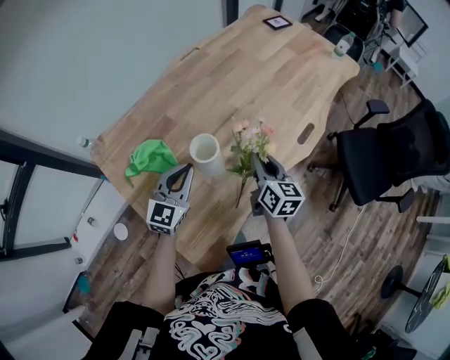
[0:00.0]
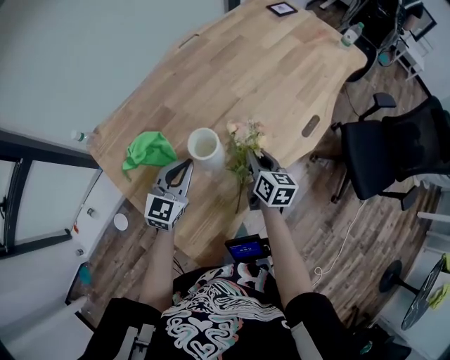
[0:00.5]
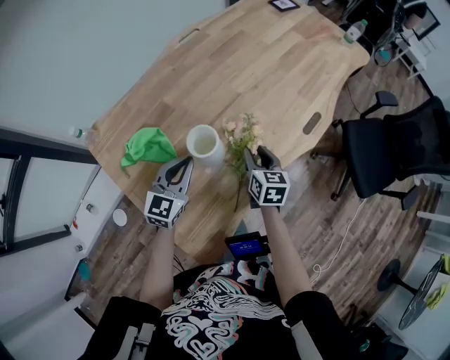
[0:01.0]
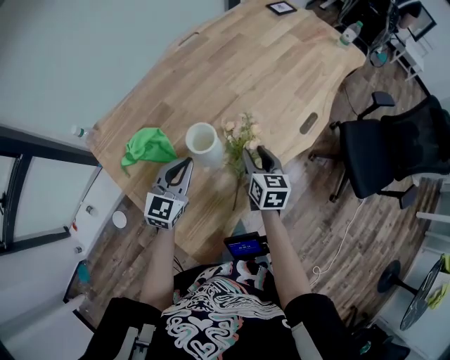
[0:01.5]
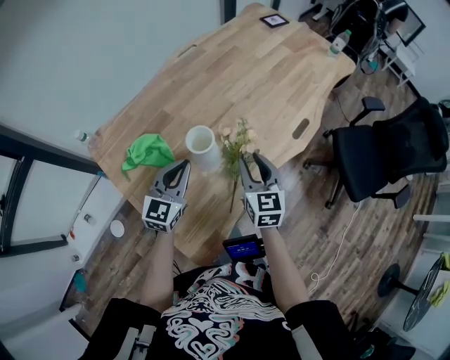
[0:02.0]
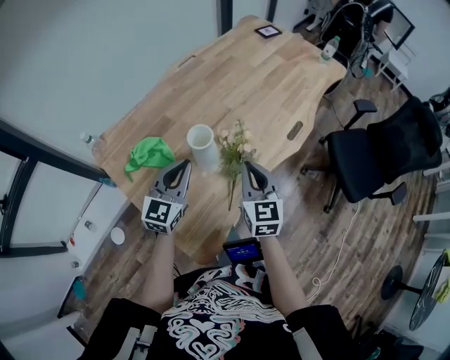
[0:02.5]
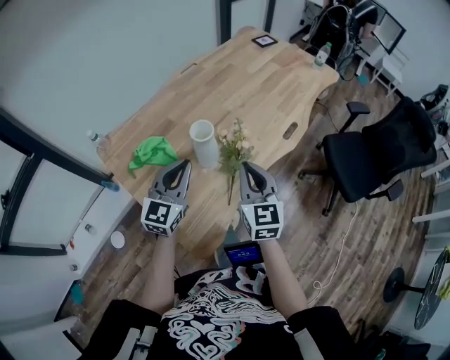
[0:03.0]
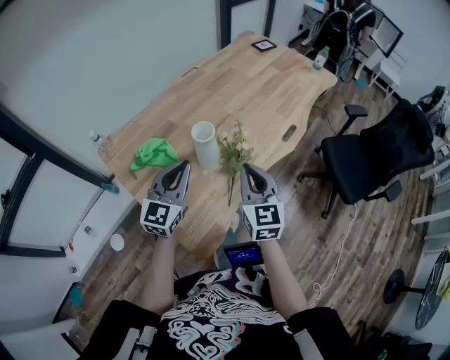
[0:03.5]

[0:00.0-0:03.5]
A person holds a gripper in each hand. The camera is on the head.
0:00.0 to 0:02.0: The right gripper travels downward and back again, about 10 cm each way, and rotates some 20 degrees.
0:02.0 to 0:03.5: The left gripper heads upward and backward, covering approximately 15 cm. The right gripper is displaced backward and upward by approximately 15 cm, and closes its fingers.

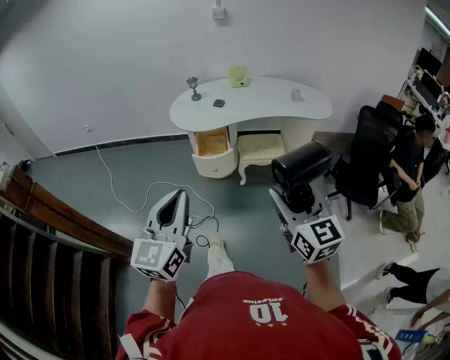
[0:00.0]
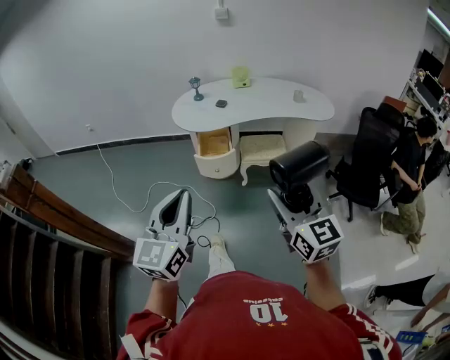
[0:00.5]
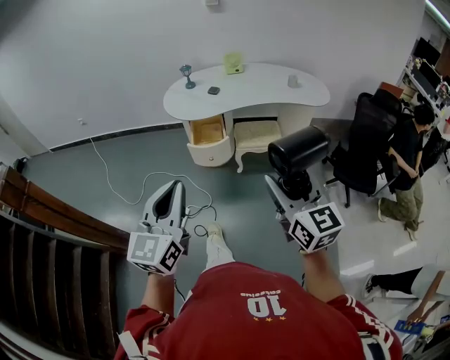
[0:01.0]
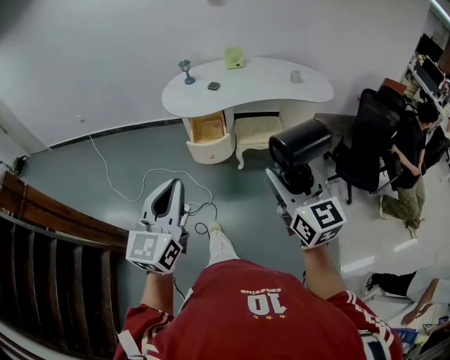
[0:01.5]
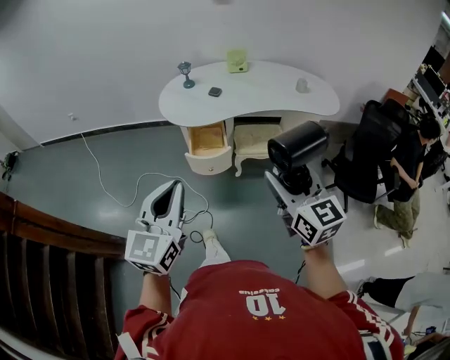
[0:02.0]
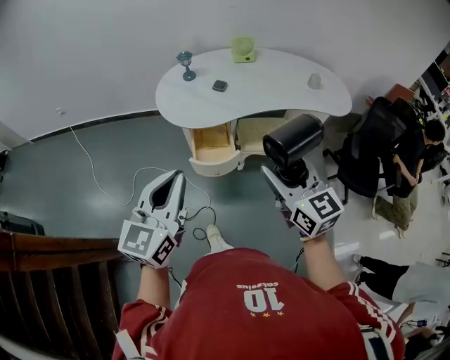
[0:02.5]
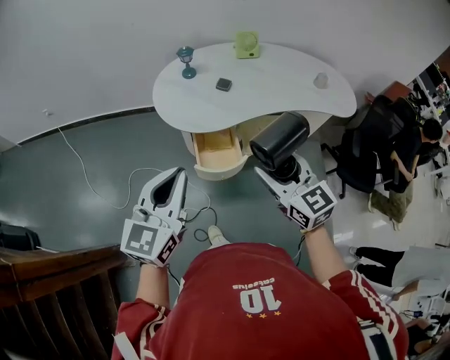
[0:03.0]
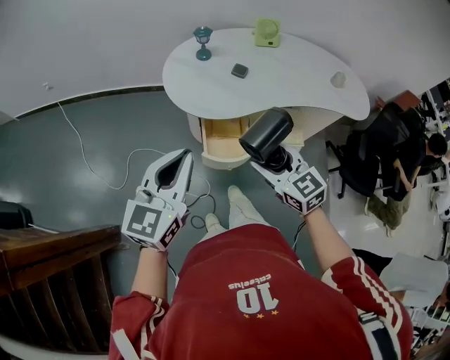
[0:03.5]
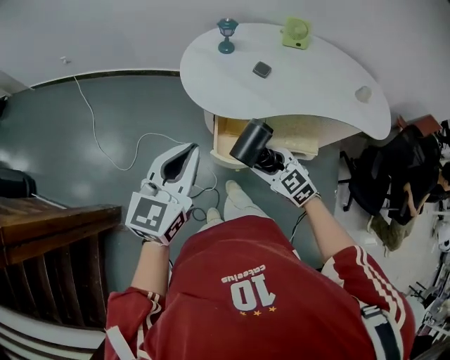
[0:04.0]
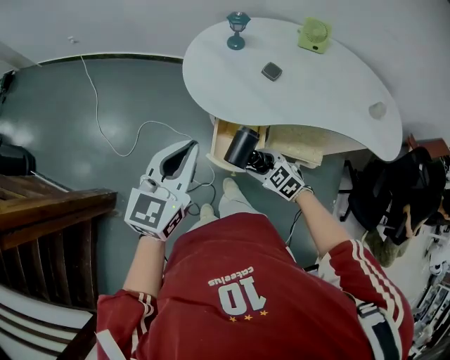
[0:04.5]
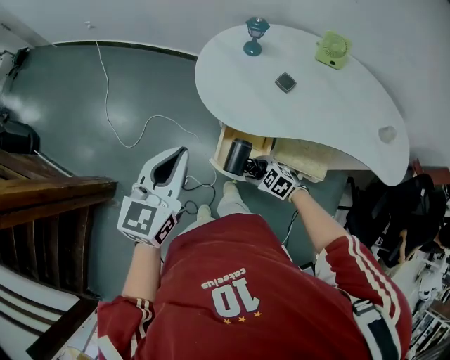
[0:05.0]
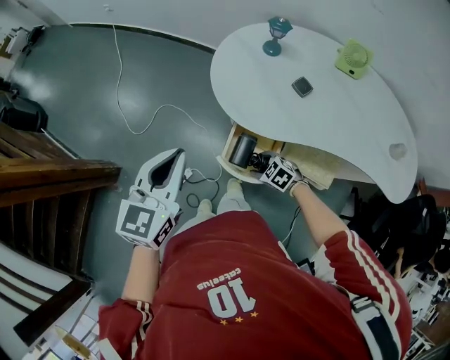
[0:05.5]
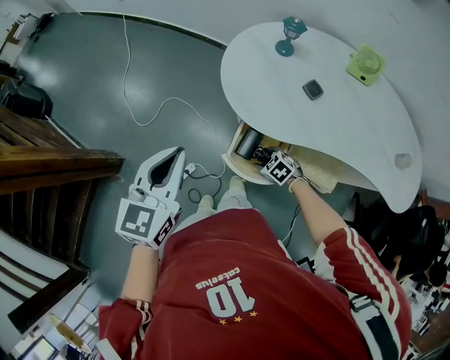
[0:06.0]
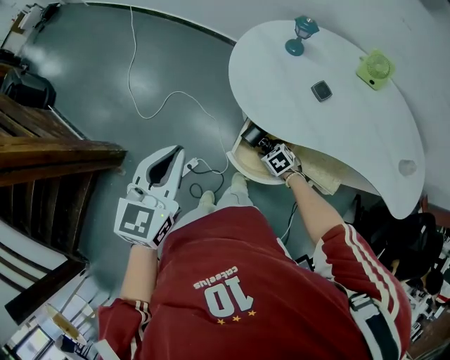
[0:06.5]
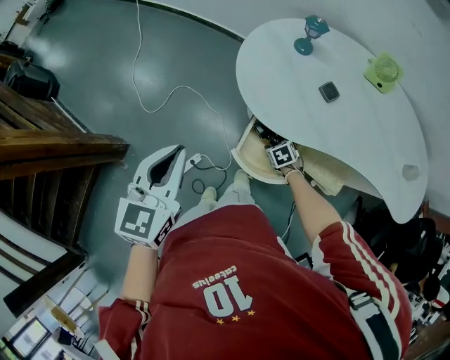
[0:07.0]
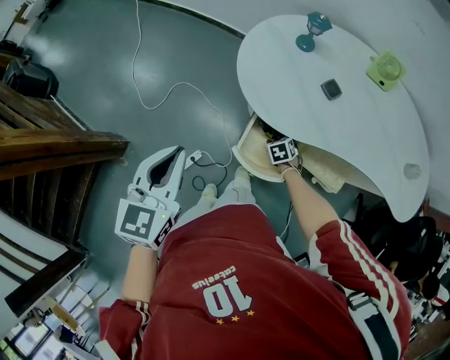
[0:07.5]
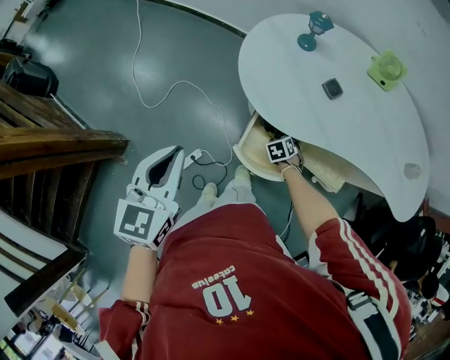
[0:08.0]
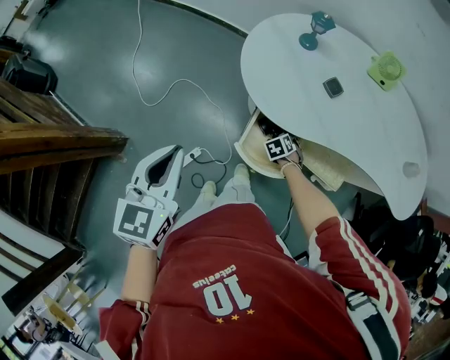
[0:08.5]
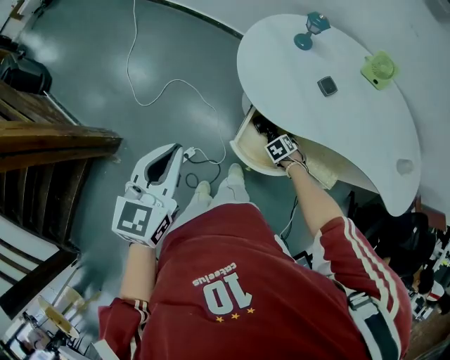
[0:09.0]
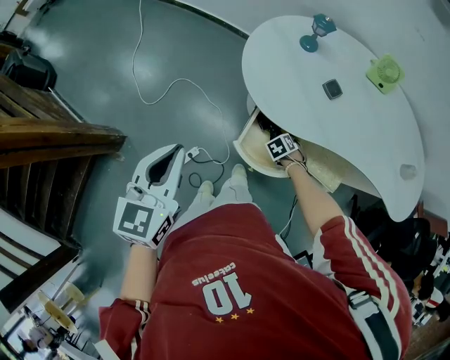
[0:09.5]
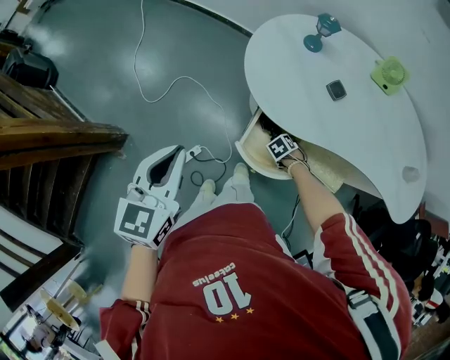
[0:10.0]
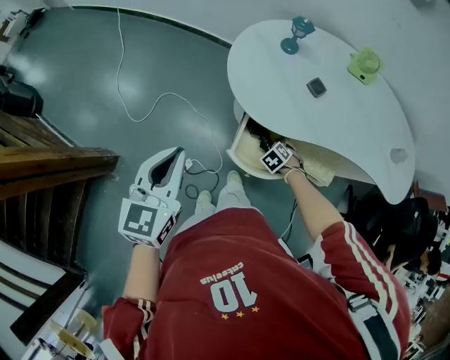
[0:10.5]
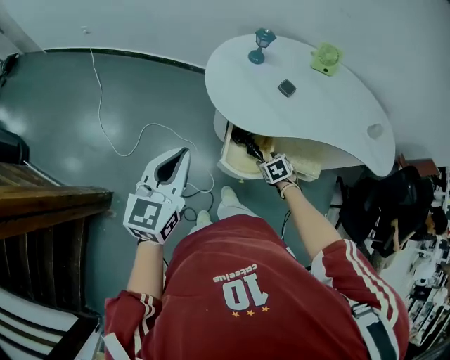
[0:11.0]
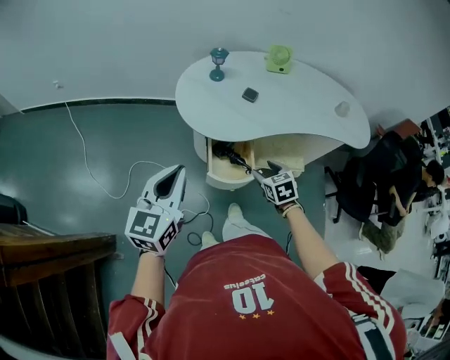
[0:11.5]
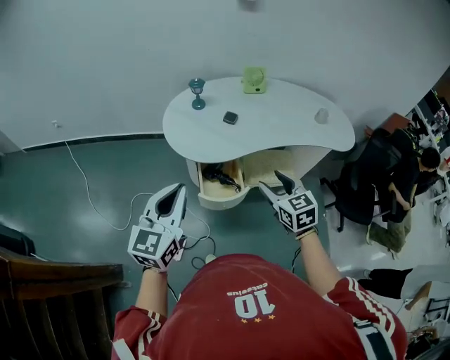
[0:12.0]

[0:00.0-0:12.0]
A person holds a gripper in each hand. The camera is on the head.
0:00.0 to 0:02.0: The grippers both shift forward by roughly 15 cm.
0:02.0 to 0:04.0: The left gripper is displaced forward by roughly 30 cm, while the right gripper is displaced forward, downward and to the left by about 40 cm, and points its fingers about 30 degrees further downward.
0:04.0 to 0:06.0: The right gripper goes about 25 cm downward, and changes its angle by some 40 degrees; the left gripper moves roughly 10 cm, and turns by roughly 30 degrees.
0:06.0 to 0:08.0: The right gripper moves some 10 cm, and rotates some 30 degrees.
0:08.0 to 0:10.0: The right gripper shifts by some 5 cm, and rotates roughly 20 degrees.
0:10.0 to 0:12.0: The right gripper moves upward, some 50 cm, and angles its fingers upward, by some 60 degrees. Meanwhile the left gripper heads upward, covering roughly 10 cm, and swivels about 40 degrees.

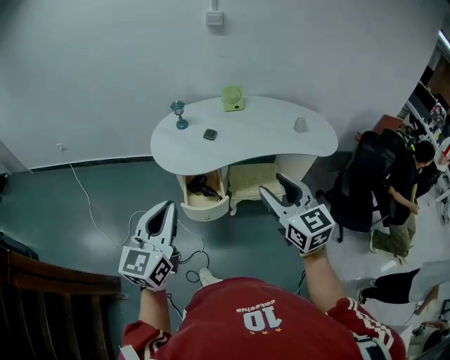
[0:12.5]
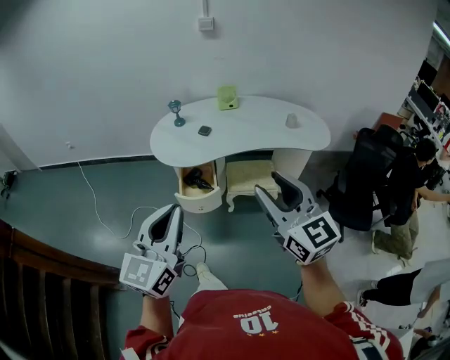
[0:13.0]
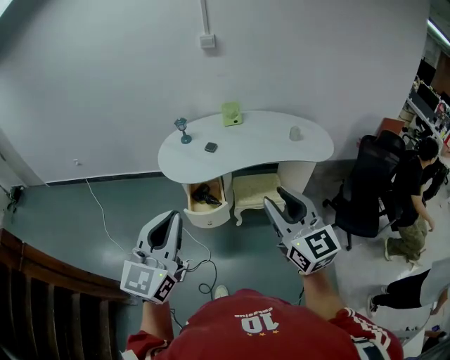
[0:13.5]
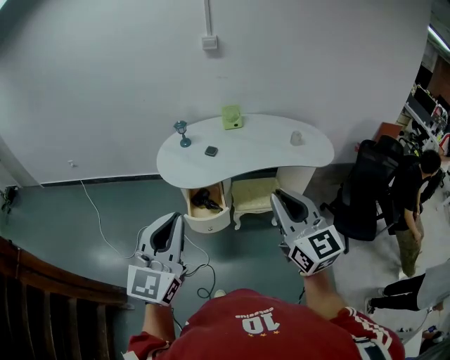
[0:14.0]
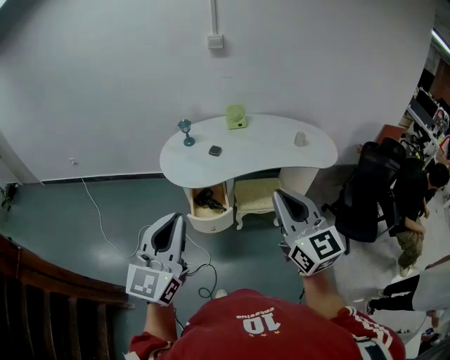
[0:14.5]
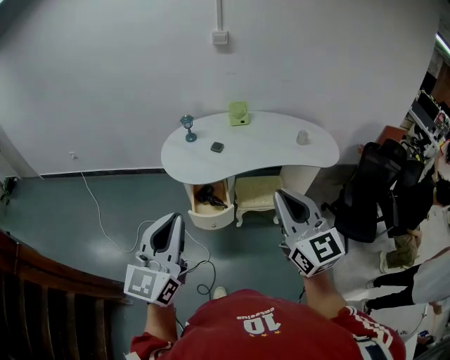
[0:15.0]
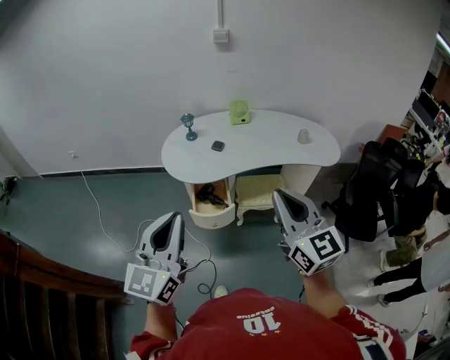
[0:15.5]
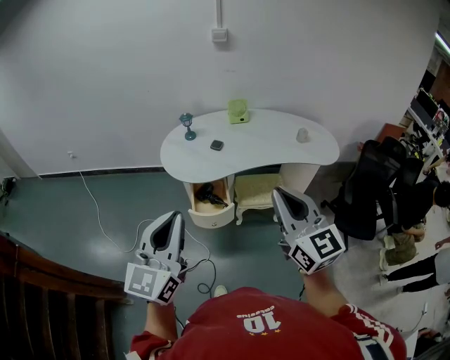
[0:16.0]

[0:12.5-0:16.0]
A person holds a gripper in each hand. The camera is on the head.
0:12.5 to 0:14.5: Both grippers move upward and backward, about 10 cm. The right gripper closes its fingers.
0:14.5 to 0:16.0: The grippers move only a little.

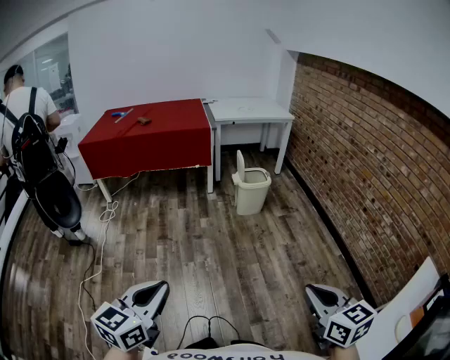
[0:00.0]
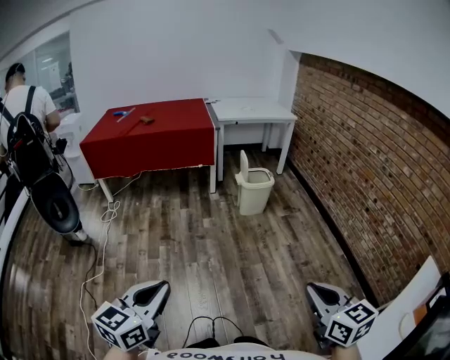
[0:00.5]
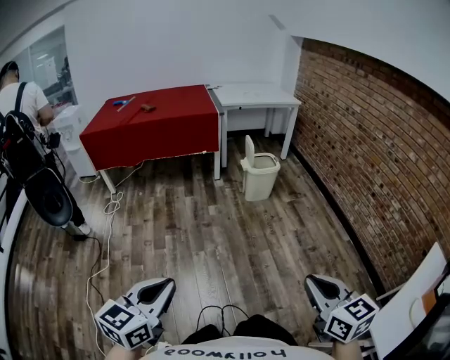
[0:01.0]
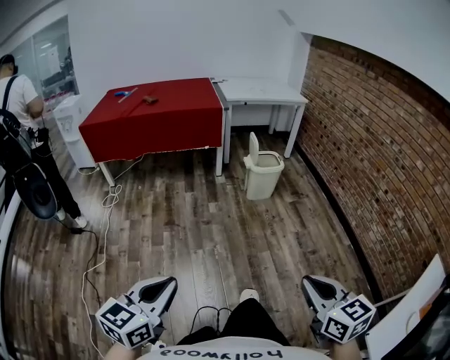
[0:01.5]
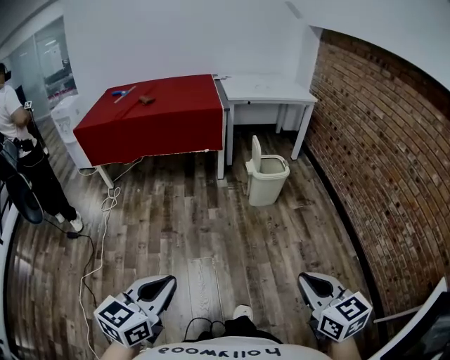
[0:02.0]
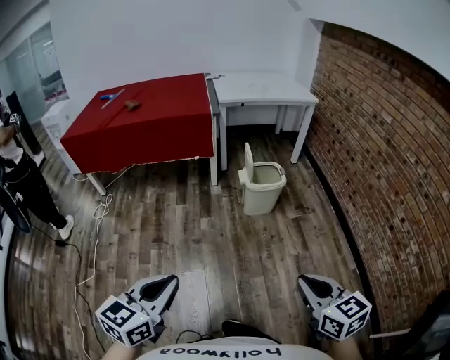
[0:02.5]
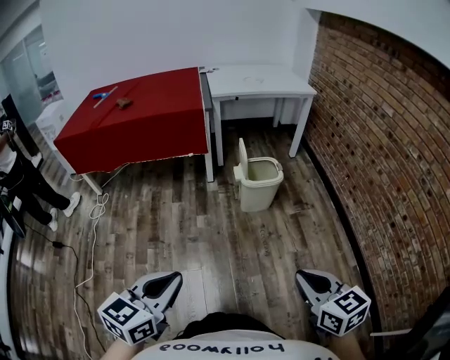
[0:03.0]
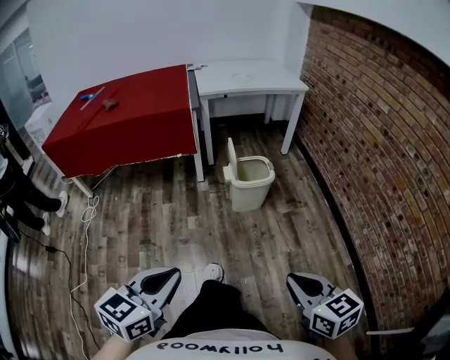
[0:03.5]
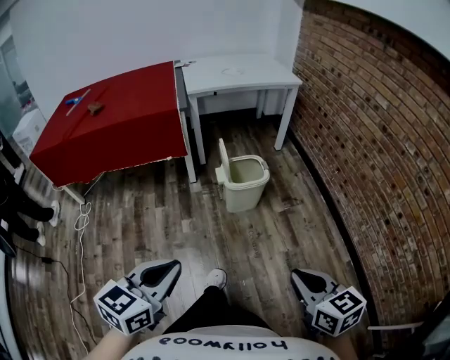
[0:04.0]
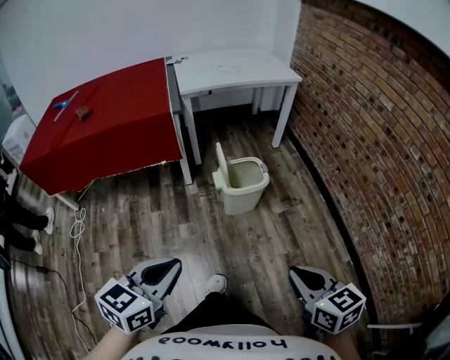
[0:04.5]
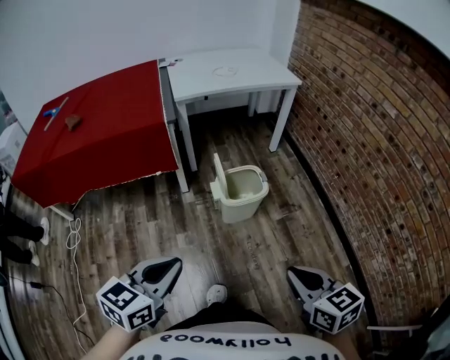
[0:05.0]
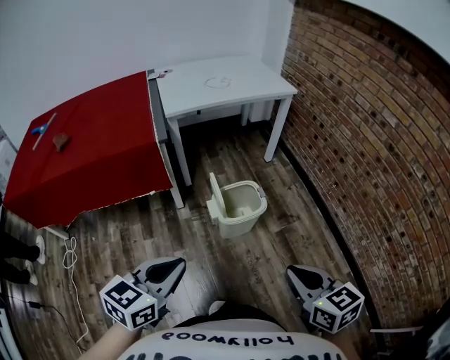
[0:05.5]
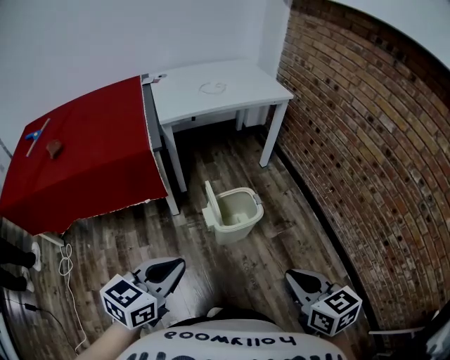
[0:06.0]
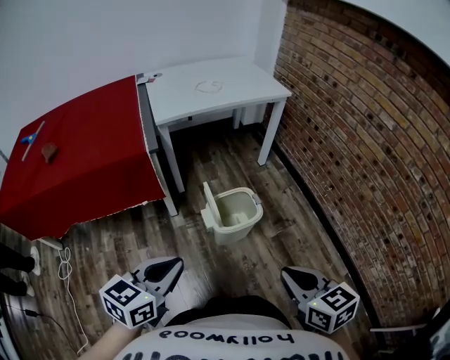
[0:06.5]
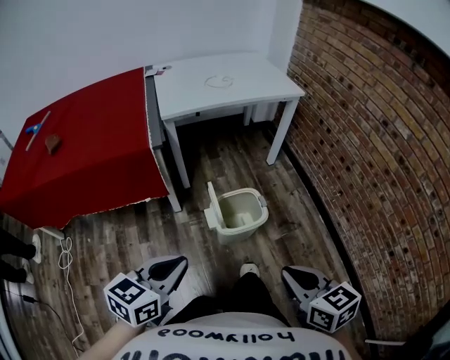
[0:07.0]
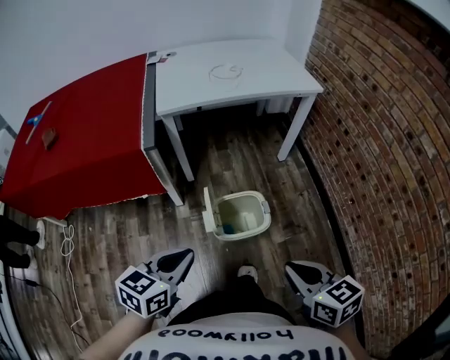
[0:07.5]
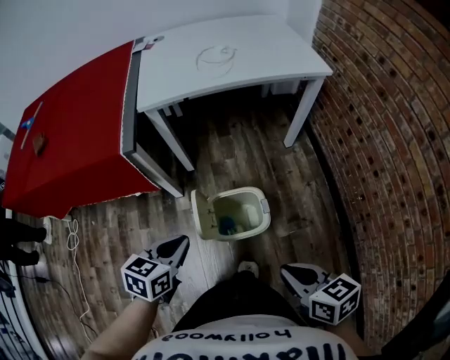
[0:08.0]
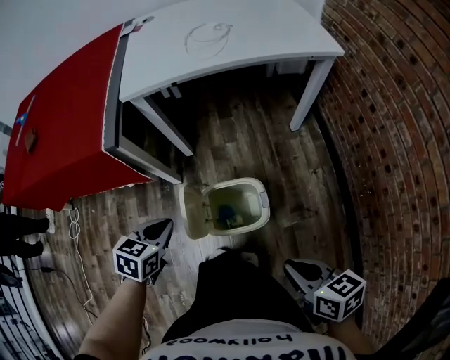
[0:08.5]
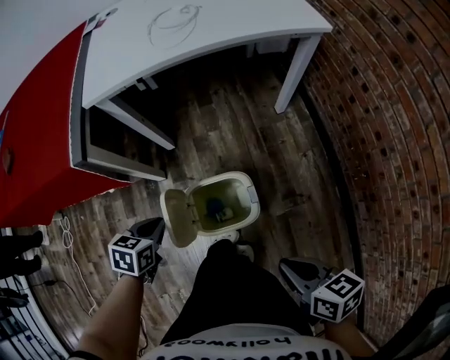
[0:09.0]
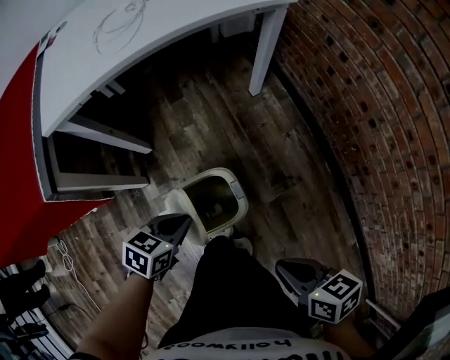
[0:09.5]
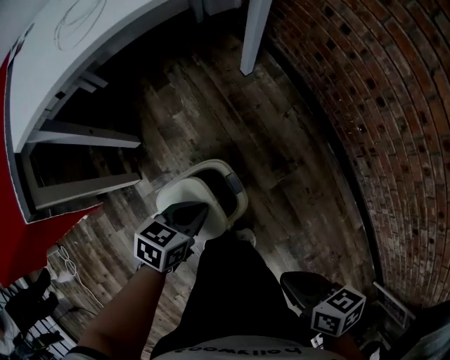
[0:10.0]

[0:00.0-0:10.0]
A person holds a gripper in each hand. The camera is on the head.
0:00.0 to 0:02.0: Both grippers travel together forward, some 15 cm.
0:02.0 to 0:04.0: The two grippers go some 30 cm forward and to the right.
0:04.0 to 0:06.0: Both grippers travel together forward, approximately 25 cm.
0:06.0 to 0:08.0: The two grippers go approximately 25 cm forward and downward. The right gripper swivels some 20 degrees. Meanwhile the left gripper swivels approximately 20 degrees.
0:08.0 to 0:10.0: The left gripper shifts by about 30 cm, and turns by approximately 30 degrees; the right gripper heads downward, covering some 15 cm, and rotates some 30 degrees.
